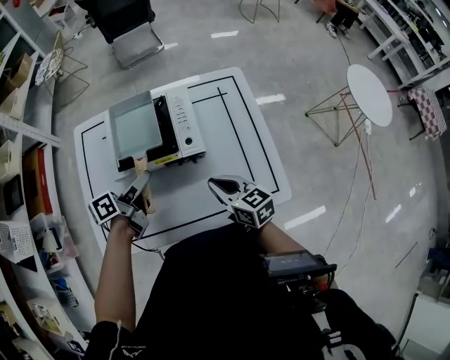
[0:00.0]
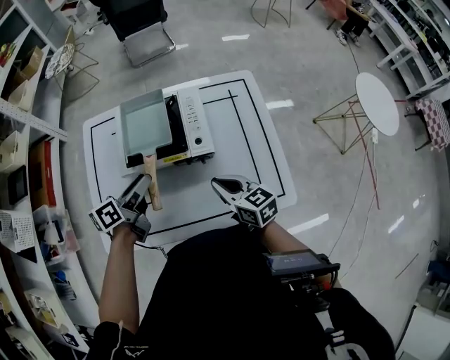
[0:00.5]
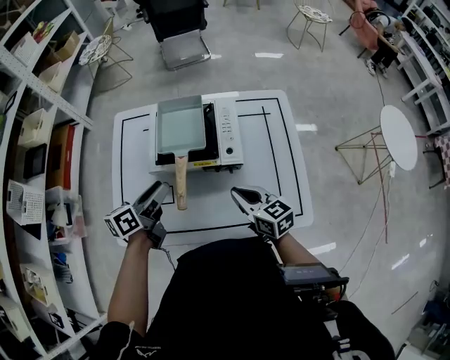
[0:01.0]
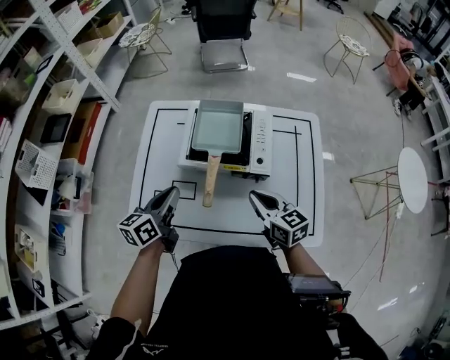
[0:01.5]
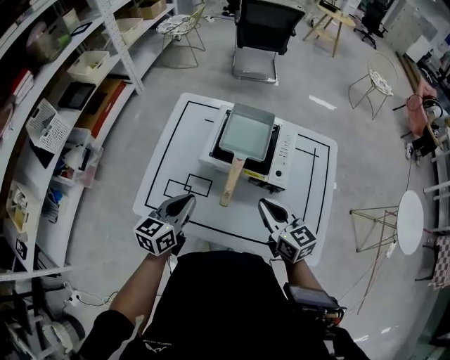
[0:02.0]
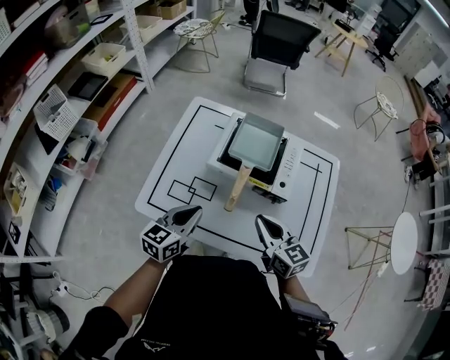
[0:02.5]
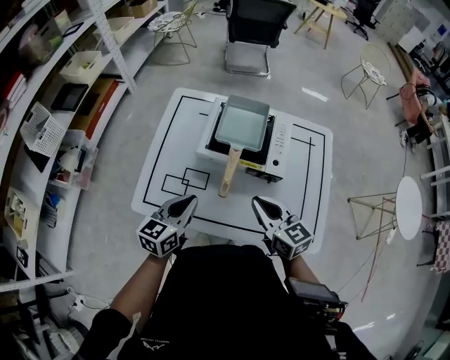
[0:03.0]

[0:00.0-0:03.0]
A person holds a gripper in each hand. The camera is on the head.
0:00.0 to 0:01.5: The right gripper ends up approximately 5 cm from where it was. The left gripper goes approximately 15 cm to the left and backward, swivels approximately 40 degrees, and closes.
0:01.5 to 0:03.0: The right gripper moves roughly 5 cm. The left gripper is displaced backward by roughly 5 cm.

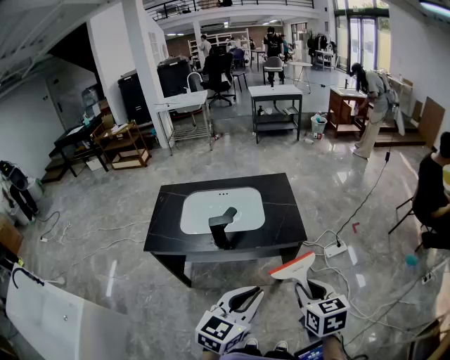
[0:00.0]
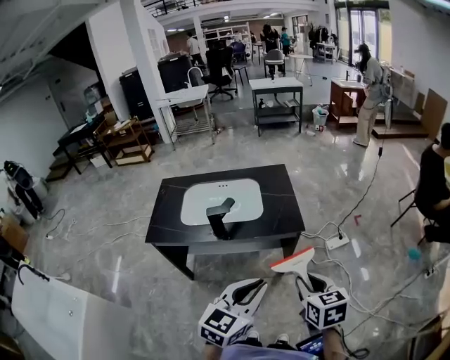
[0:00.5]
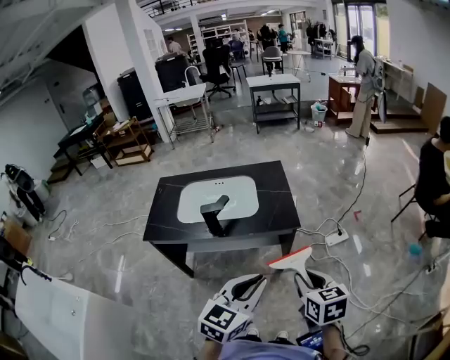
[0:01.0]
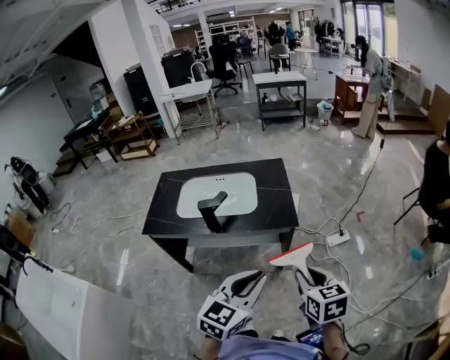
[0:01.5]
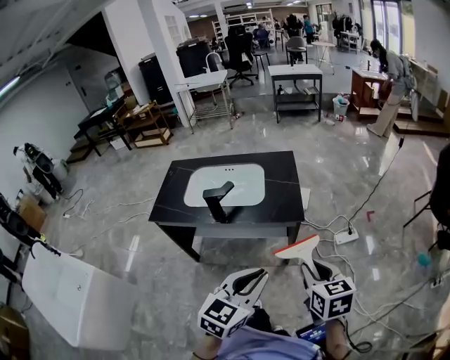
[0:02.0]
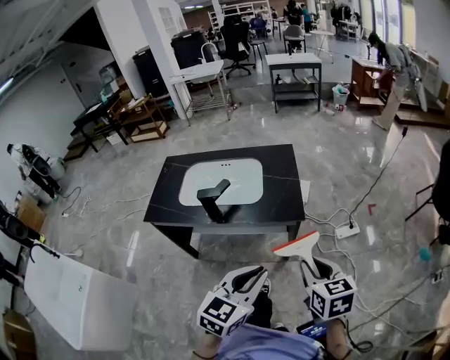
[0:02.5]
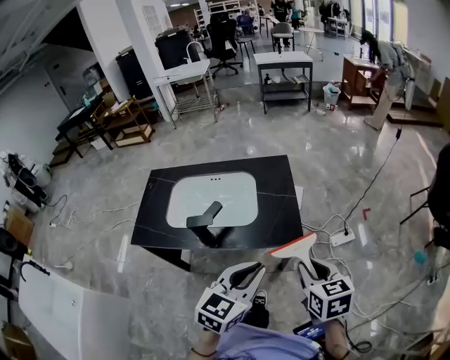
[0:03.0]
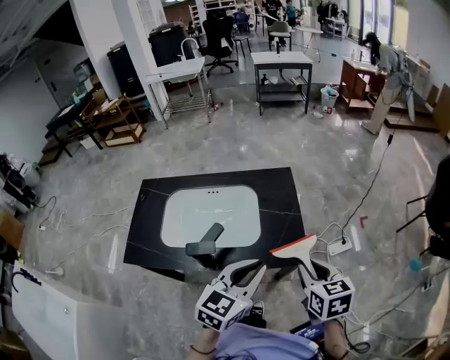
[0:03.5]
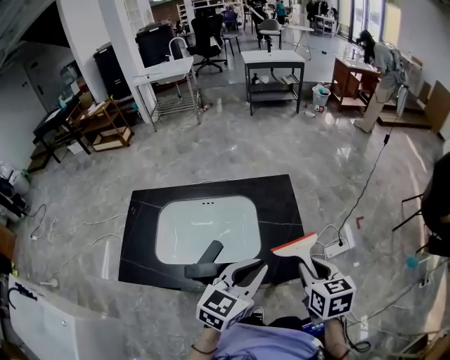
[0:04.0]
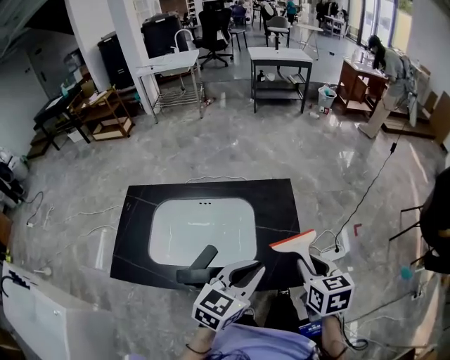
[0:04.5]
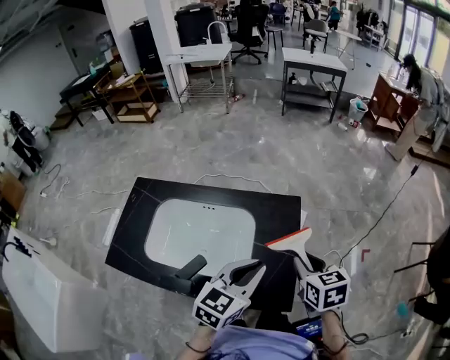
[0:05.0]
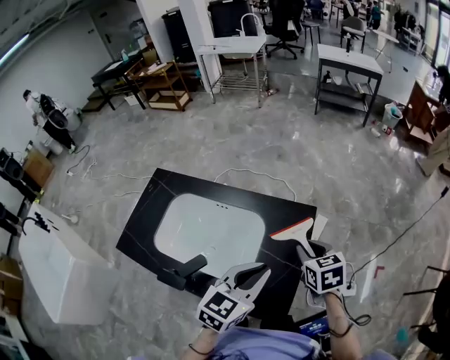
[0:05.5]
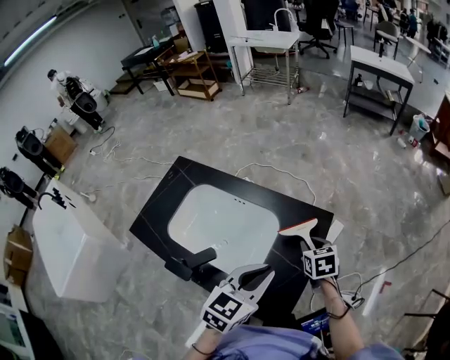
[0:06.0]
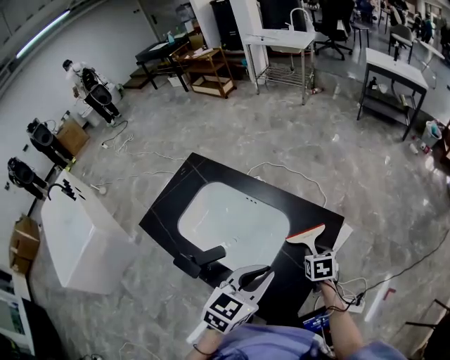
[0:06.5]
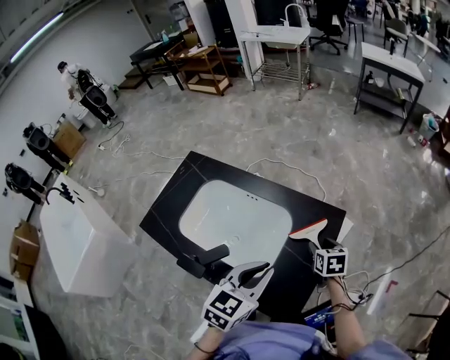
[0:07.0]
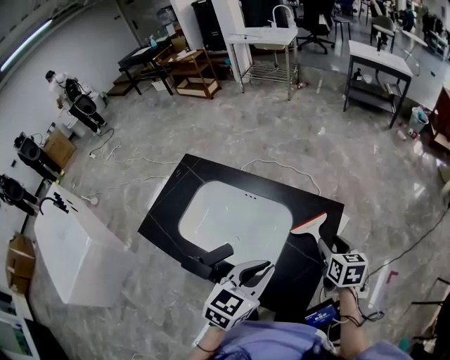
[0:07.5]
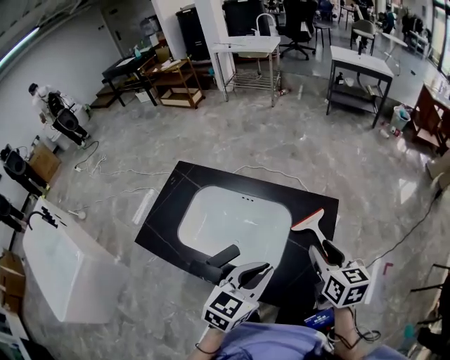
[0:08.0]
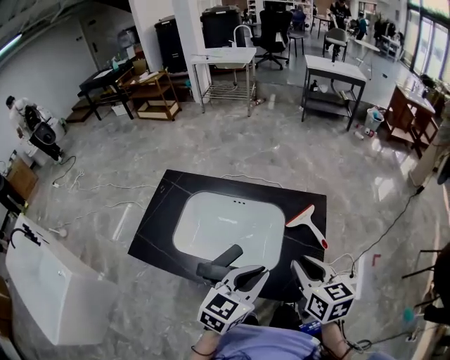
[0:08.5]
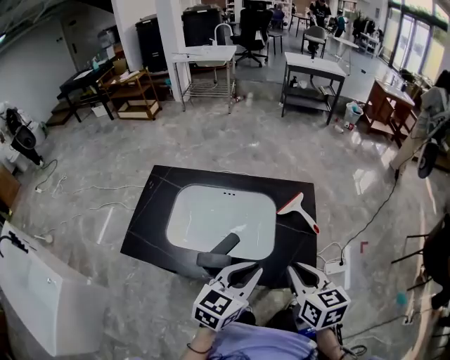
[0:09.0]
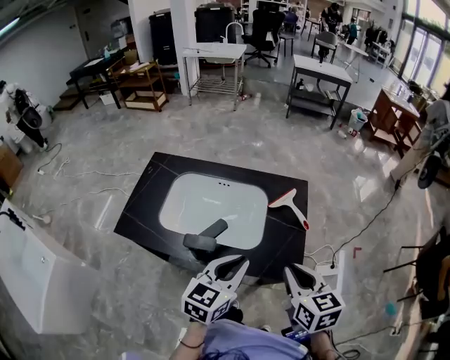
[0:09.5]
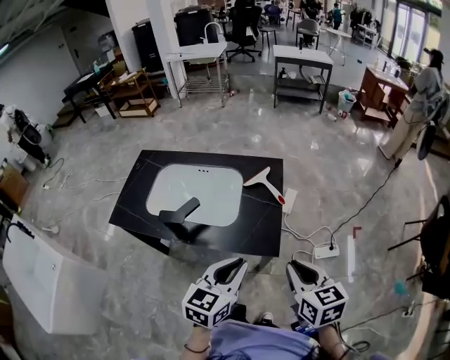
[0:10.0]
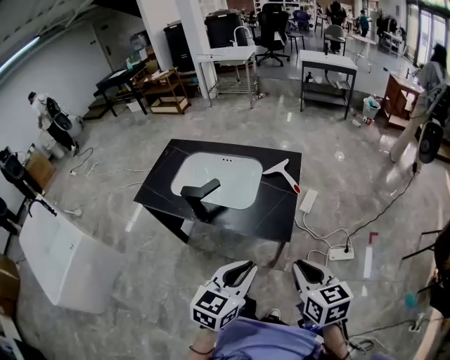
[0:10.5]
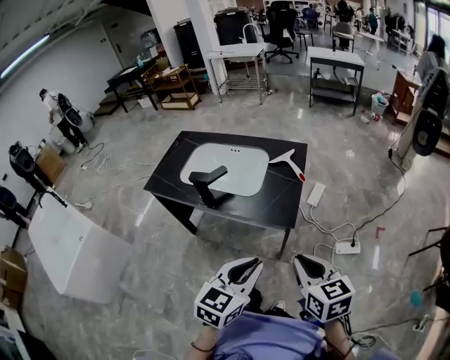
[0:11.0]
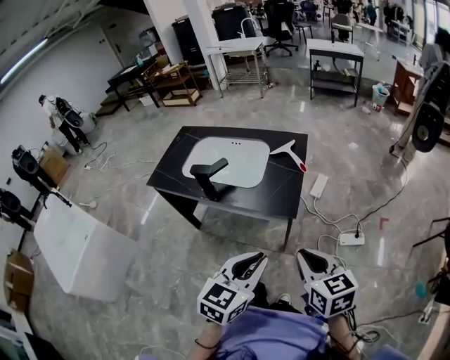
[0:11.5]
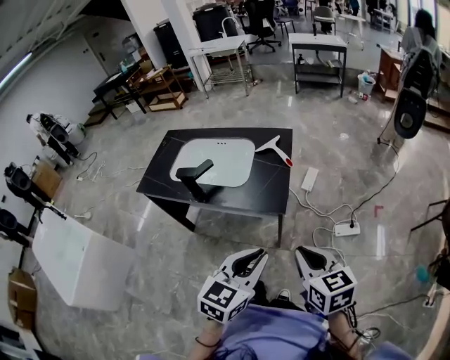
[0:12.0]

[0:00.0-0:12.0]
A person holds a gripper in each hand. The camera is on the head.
0:00.0 to 0:02.0: The grippers both shift to the right by about 10 cm.
0:02.0 to 0:04.0: The two grippers go some 30 cm forward.
0:04.0 to 0:06.0: The left gripper shifts by roughly 15 cm, and turns by some 30 degrees, while the right gripper moves some 30 cm, and swivels about 30 degrees.
0:06.0 to 0:08.0: The right gripper heads upward and backward, covering some 15 cm, and turns by about 30 degrees, while the left gripper heads to the left, covering approximately 10 cm.
0:08.0 to 0:10.0: The left gripper travels backward and to the right by some 20 cm, while the right gripper moves backward, approximately 30 cm, and closes up.
0:10.0 to 0:12.0: The left gripper heads backward and to the right, covering about 20 cm. Meanwhile the right gripper is displaced backward by about 15 cm.

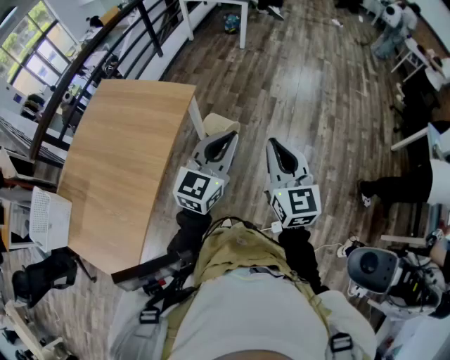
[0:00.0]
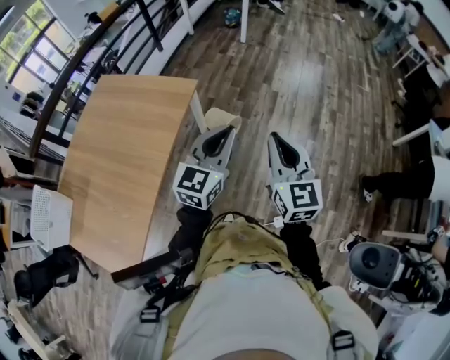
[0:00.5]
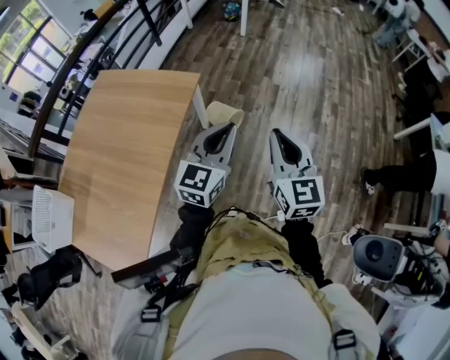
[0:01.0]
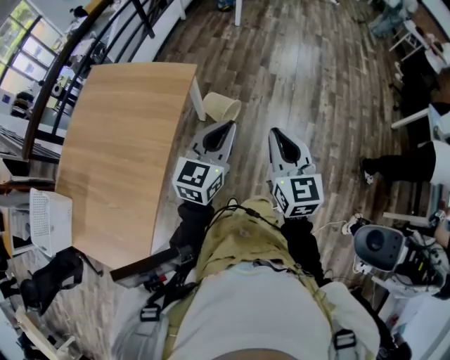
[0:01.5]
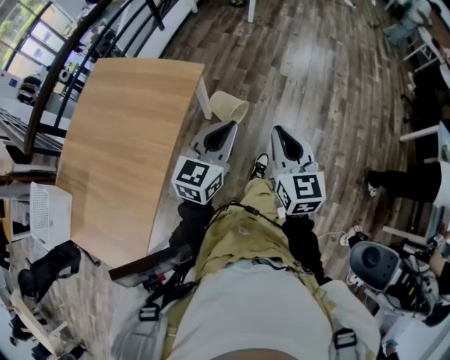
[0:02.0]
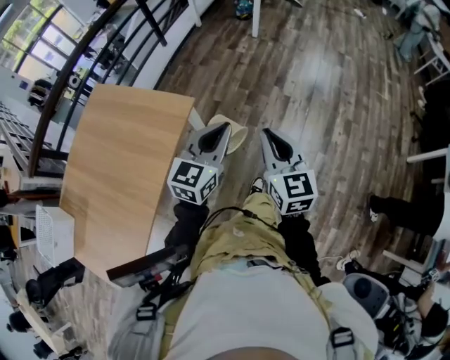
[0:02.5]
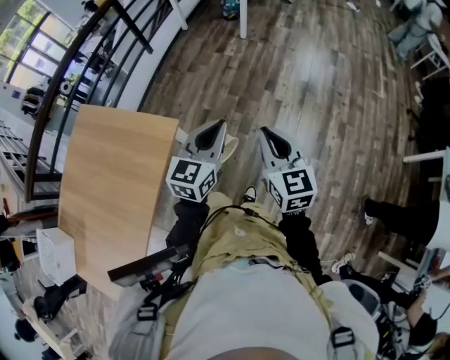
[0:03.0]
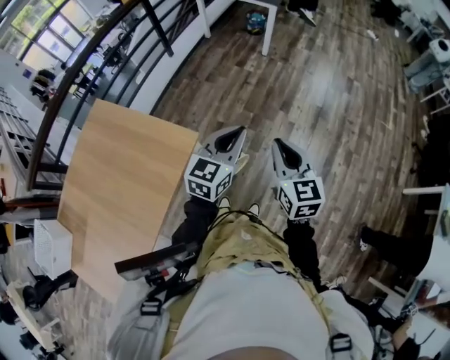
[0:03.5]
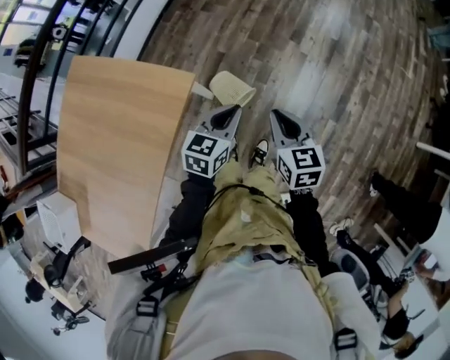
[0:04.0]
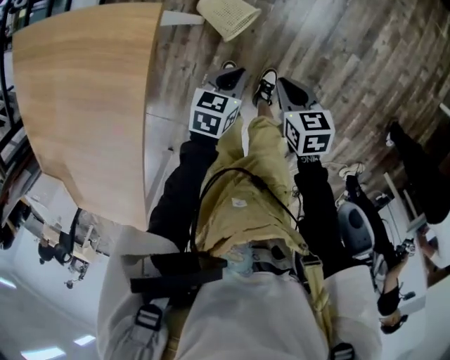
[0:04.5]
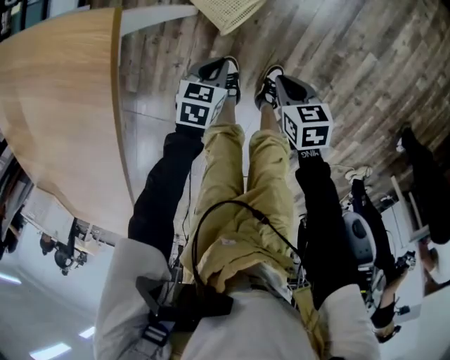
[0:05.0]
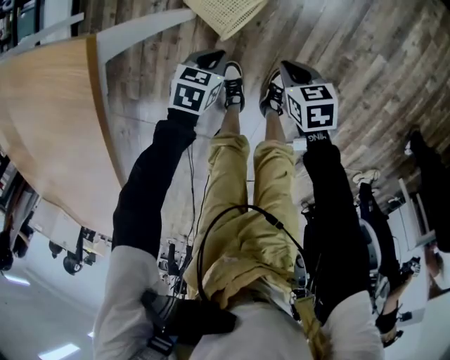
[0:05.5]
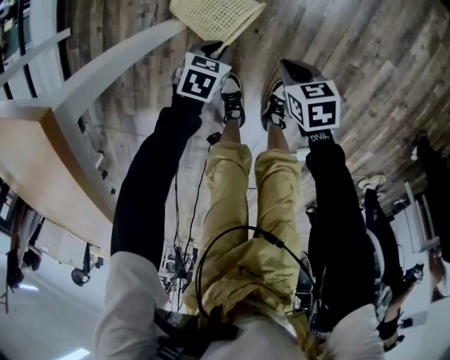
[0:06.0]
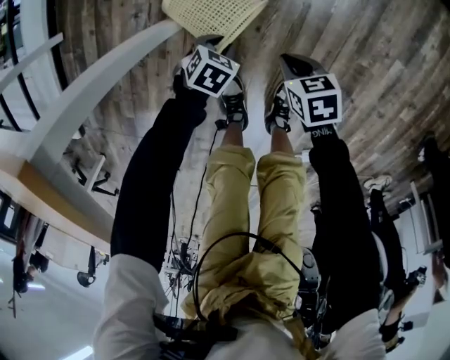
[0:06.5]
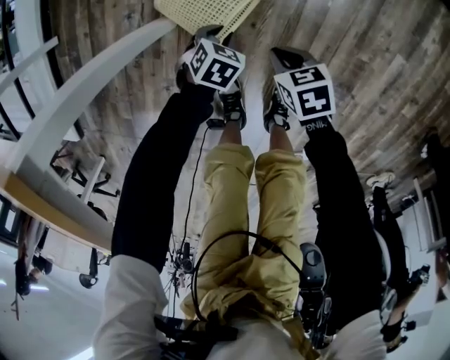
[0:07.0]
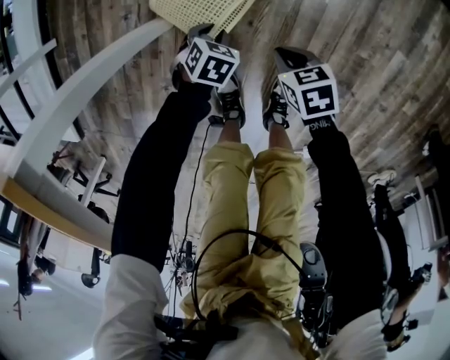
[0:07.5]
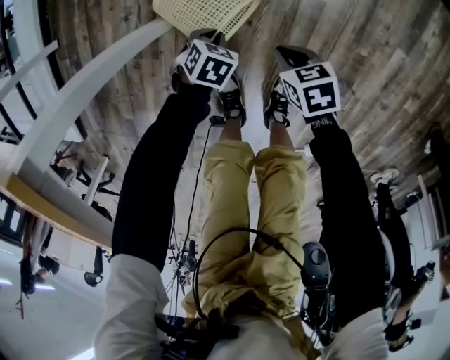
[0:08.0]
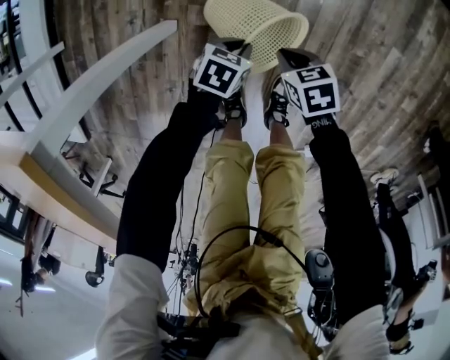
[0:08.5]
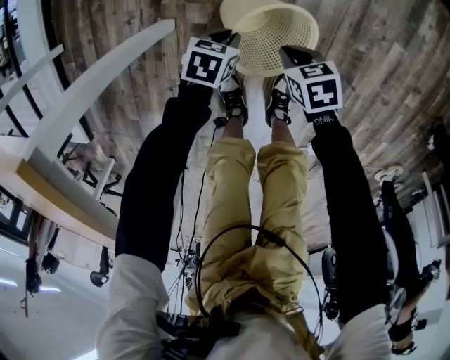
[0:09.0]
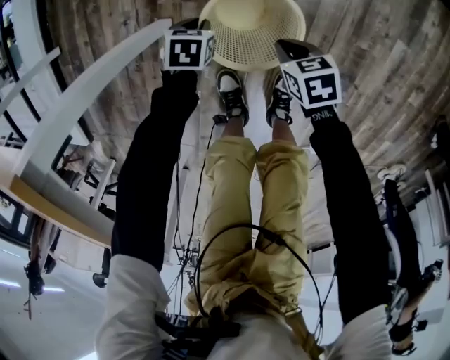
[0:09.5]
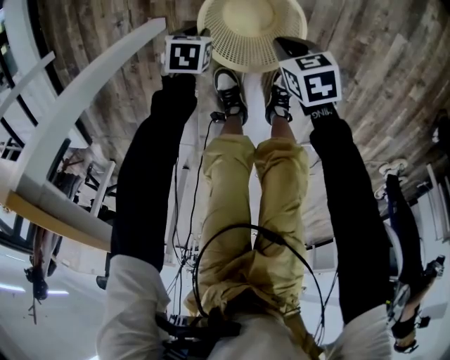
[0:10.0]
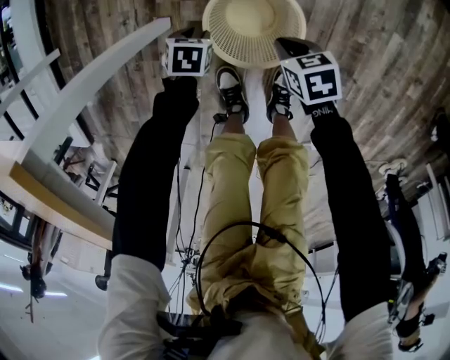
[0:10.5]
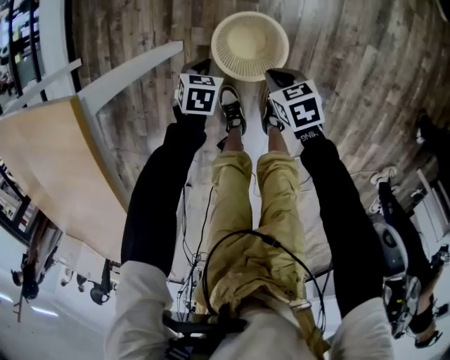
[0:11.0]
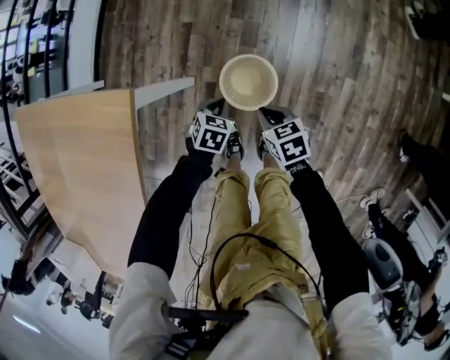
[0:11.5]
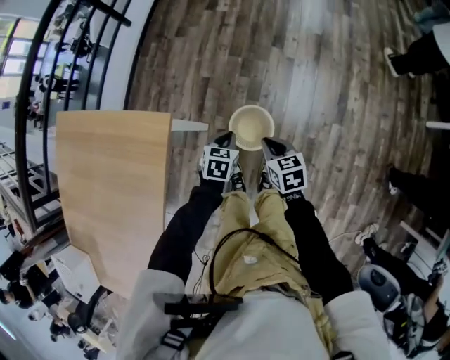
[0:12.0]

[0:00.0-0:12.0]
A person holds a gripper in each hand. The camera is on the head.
0:00.0 to 0:02.0: The left gripper goes roughly 10 cm downward, forward and to the left. Meanwhile the right gripper travels forward and downward by some 10 cm.
0:02.0 to 0:04.0: Both grippers move forward and downward, some 35 cm. The left gripper turns by approximately 20 degrees. Meanwhile the right gripper rotates about 30 degrees.
0:04.0 to 0:06.0: The two grippers go approximately 60 cm downward. The left gripper tilts its fingers approximately 40 degrees downward. Meanwhile the right gripper turns by roughly 40 degrees.
0:06.0 to 0:08.0: Both grippers travel together downward, roughly 10 cm.
0:08.0 to 0:10.0: The left gripper moves some 5 cm upward and comes back.
0:10.0 to 0:12.0: The two grippers go some 50 cm upward. The left gripper swivels approximately 30 degrees; the right gripper swivels some 20 degrees.
